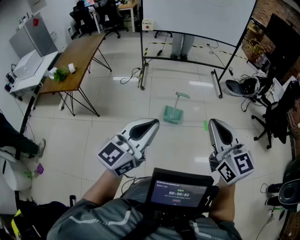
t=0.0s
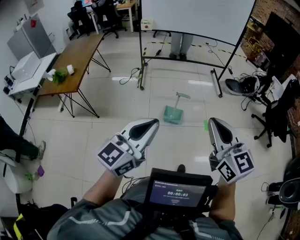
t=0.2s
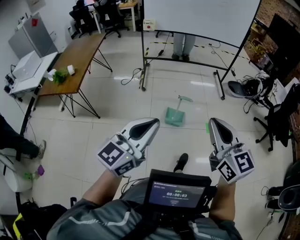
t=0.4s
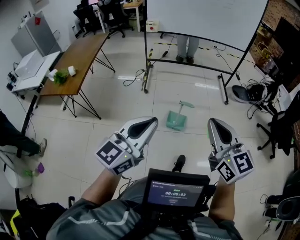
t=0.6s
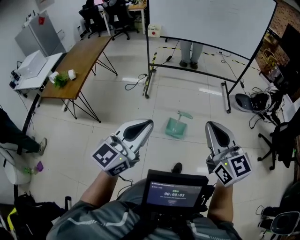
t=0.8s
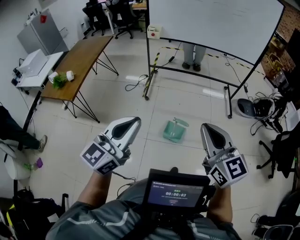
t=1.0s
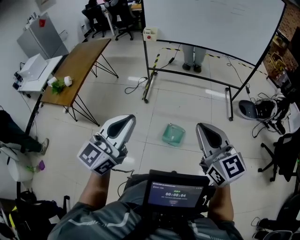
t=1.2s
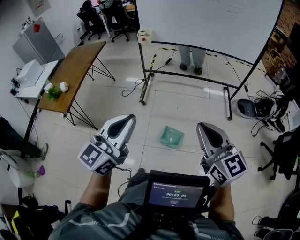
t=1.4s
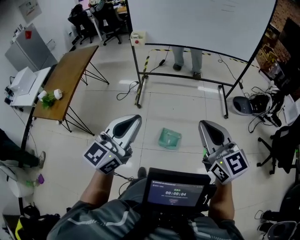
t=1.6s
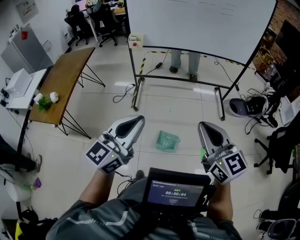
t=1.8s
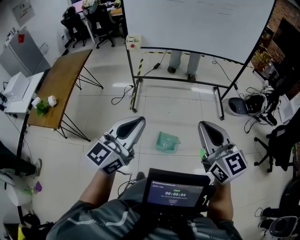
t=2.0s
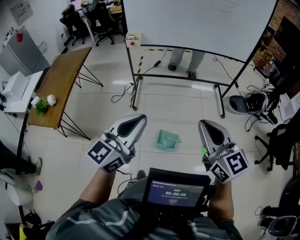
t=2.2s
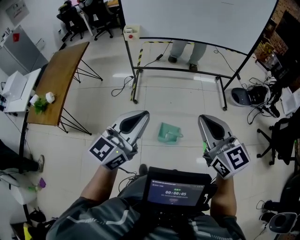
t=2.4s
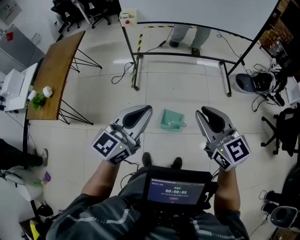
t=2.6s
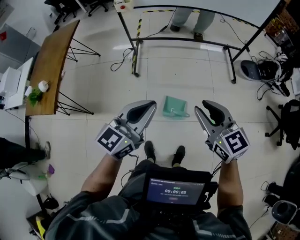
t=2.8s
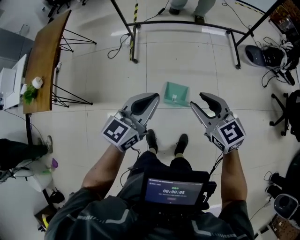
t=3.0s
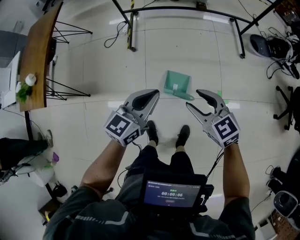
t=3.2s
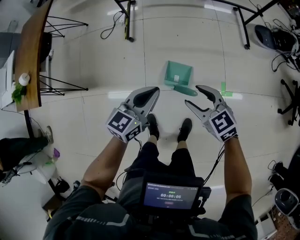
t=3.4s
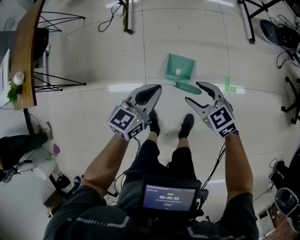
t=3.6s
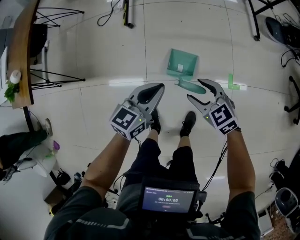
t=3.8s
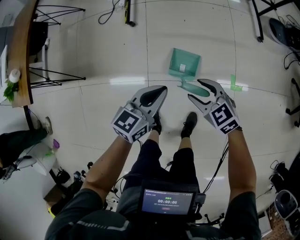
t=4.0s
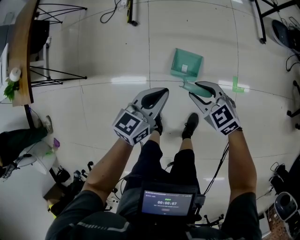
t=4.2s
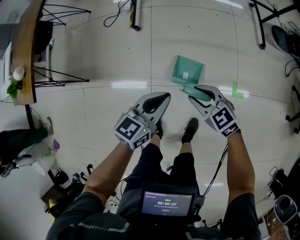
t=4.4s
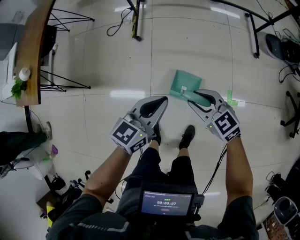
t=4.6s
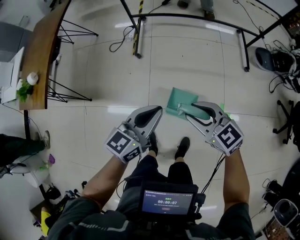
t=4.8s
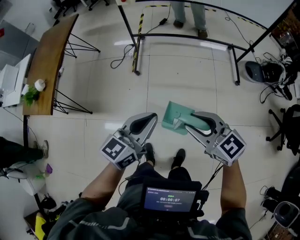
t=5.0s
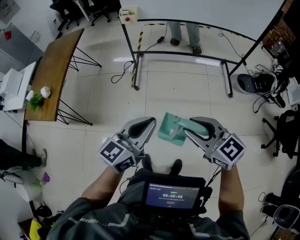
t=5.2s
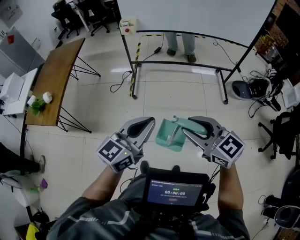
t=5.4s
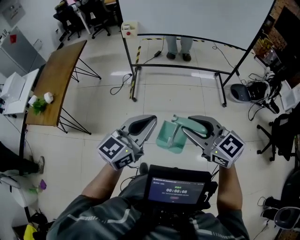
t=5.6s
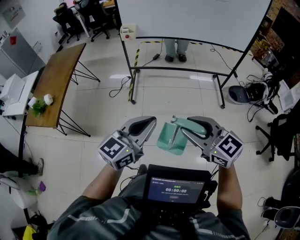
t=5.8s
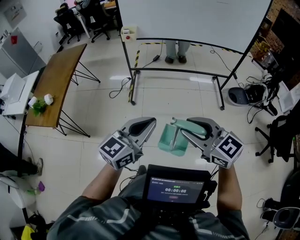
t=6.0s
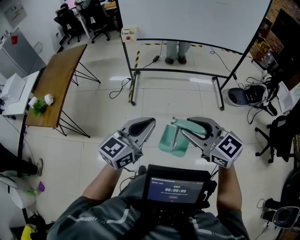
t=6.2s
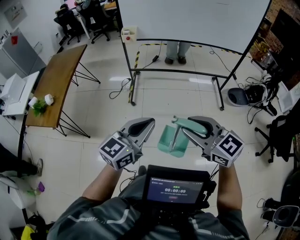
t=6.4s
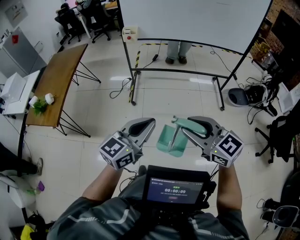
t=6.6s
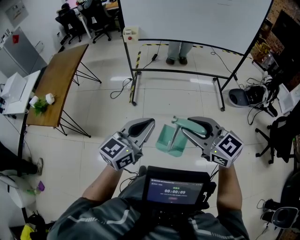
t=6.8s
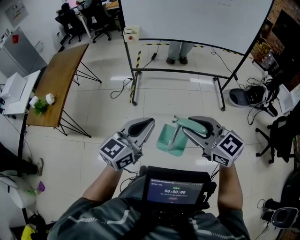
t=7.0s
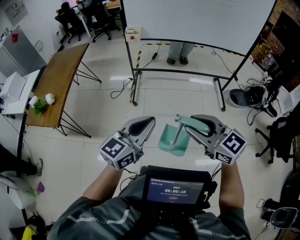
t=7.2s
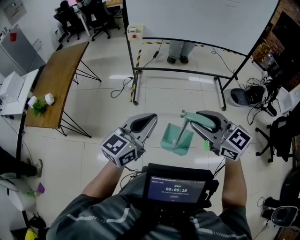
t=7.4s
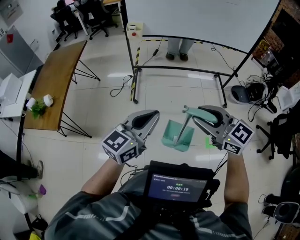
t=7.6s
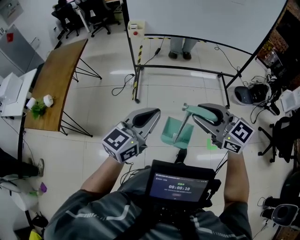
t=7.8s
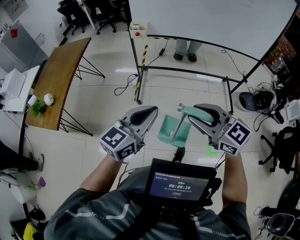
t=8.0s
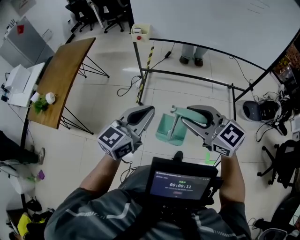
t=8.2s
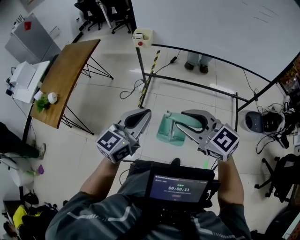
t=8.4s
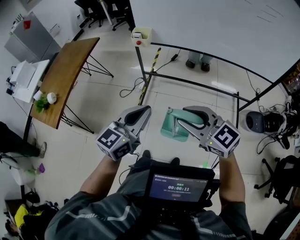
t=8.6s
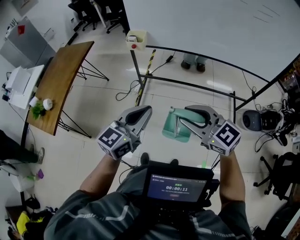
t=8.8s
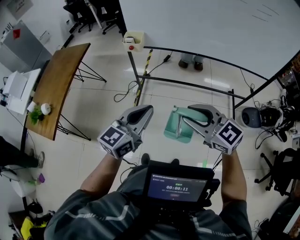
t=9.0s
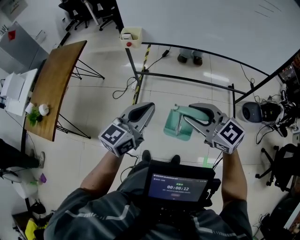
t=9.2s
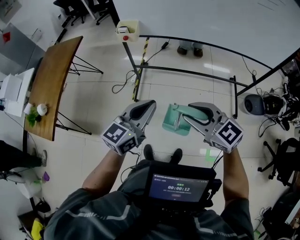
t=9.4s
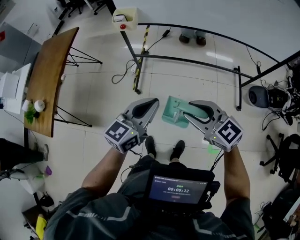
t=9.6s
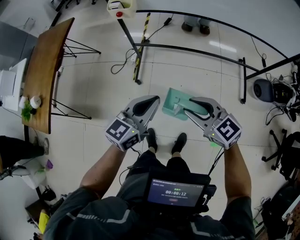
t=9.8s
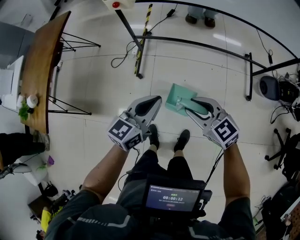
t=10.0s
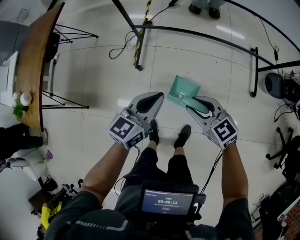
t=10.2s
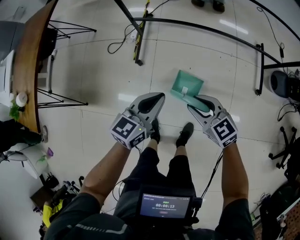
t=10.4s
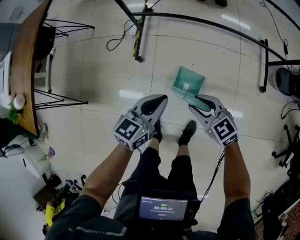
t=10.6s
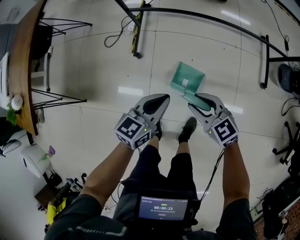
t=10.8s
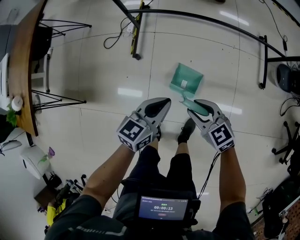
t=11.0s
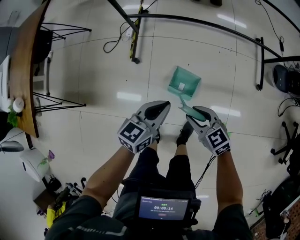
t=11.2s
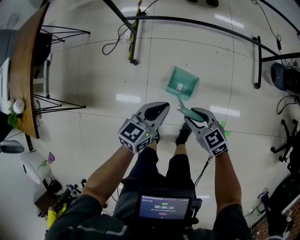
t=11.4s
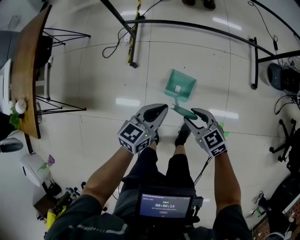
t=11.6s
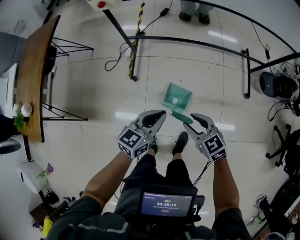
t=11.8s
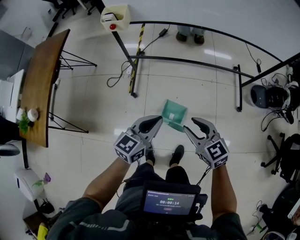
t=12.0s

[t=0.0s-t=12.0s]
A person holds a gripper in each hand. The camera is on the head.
t=0.0s to t=1.6s: Both grippers are carried forward, approximately 60 cm.
t=1.6s to t=3.0s: Both grippers travel together downward and forward, about 35 cm. The right gripper opens up.
t=3.0s to t=4.4s: Both grippers travel together downward, approximately 40 cm. The right gripper changes its angle by some 20 degrees, and opens, then closes again.
t=4.4s to t=6.0s: The grippers both shift upward by about 60 cm. The right gripper swivels about 30 degrees; the left gripper swivels some 20 degrees.
t=6.0s to t=7.6s: The right gripper travels forward and to the left by some 10 cm; the left gripper is displaced to the left and forward by approximately 15 cm.
t=7.6s to t=9.0s: The two grippers go about 40 cm forward and to the right.
t=9.0s to t=10.4s: The left gripper travels downward and forward by roughly 50 cm; the right gripper heads downward, covering roughly 50 cm, and swivels about 20 degrees.
t=10.4s to t=12.0s: The left gripper goes roughly 20 cm upward and backward. The right gripper heads upward, covering about 25 cm.

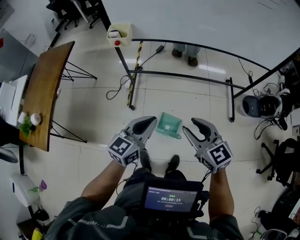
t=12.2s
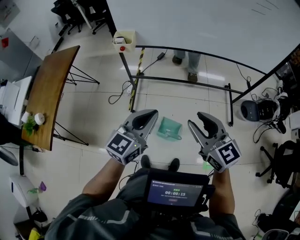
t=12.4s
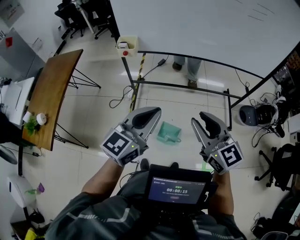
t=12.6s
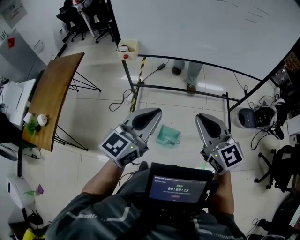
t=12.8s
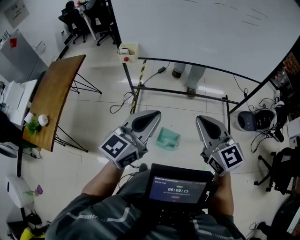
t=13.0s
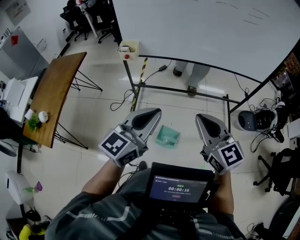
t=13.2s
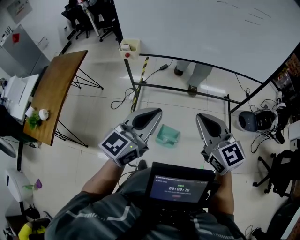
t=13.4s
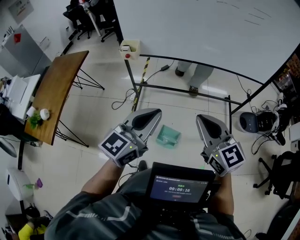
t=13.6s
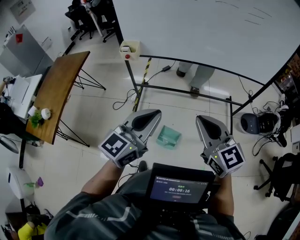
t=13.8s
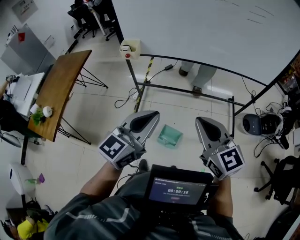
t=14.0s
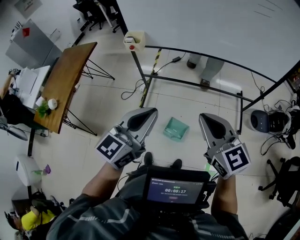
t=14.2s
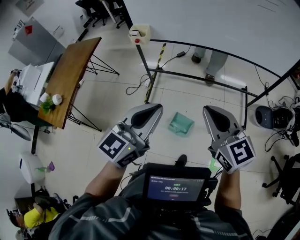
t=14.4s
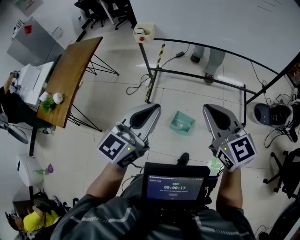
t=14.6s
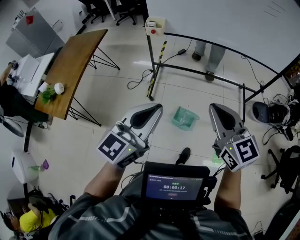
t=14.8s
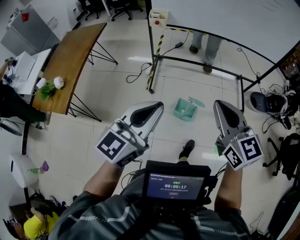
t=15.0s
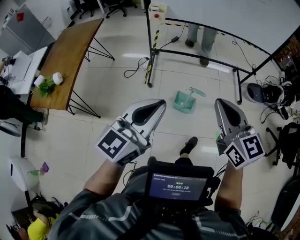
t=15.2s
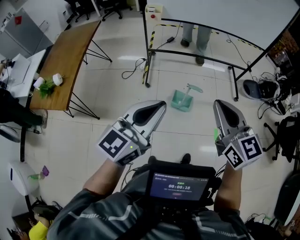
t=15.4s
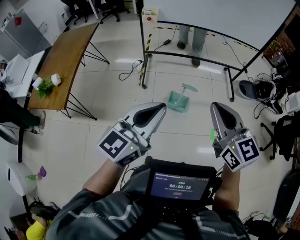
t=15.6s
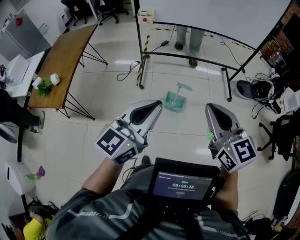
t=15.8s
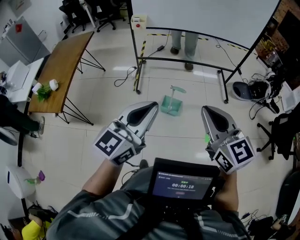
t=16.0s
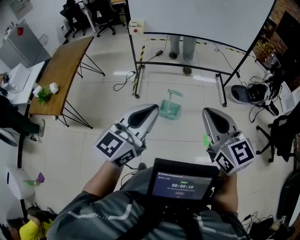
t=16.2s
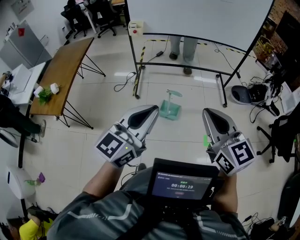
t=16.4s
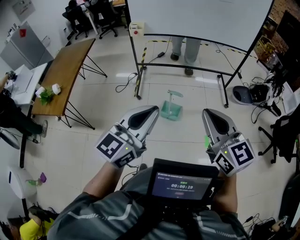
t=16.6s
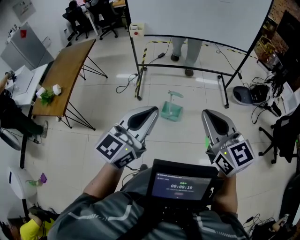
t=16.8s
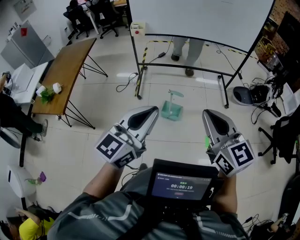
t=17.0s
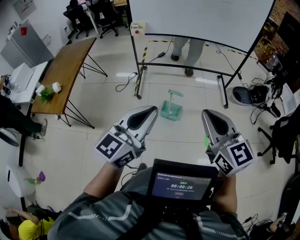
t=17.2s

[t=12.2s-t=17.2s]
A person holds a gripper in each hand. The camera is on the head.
t=12.2s to t=13.8s: The left gripper shifts roughly 25 cm upward and backward. The right gripper shifts approximately 25 cm upward, to the right and backward, and closes up.
t=13.8s to t=15.6s: The pair of grippers is taken backward and to the left, roughly 50 cm.
t=15.6s to t=17.2s: The two grippers go roughly 20 cm to the right and backward.

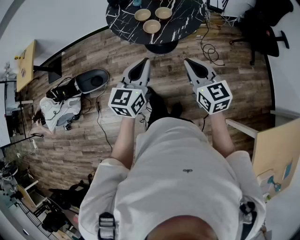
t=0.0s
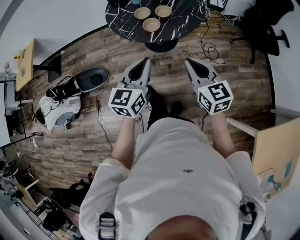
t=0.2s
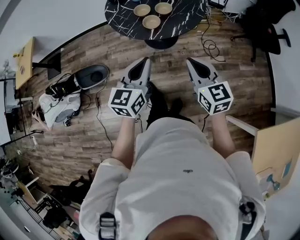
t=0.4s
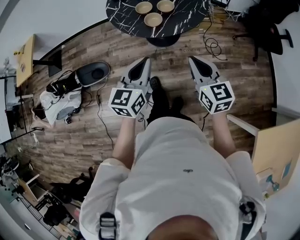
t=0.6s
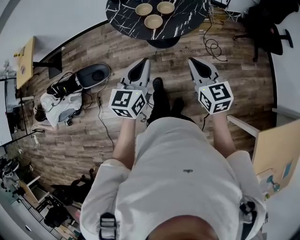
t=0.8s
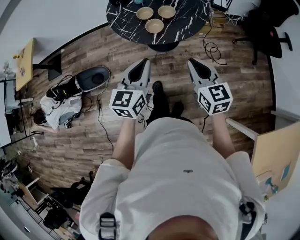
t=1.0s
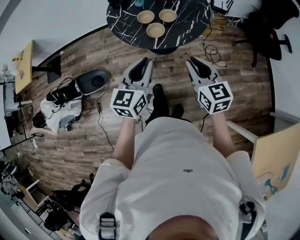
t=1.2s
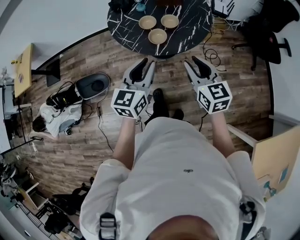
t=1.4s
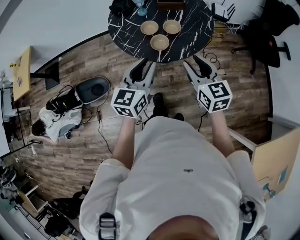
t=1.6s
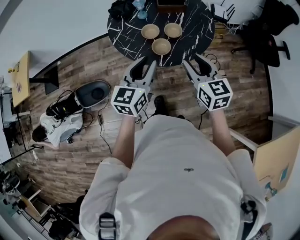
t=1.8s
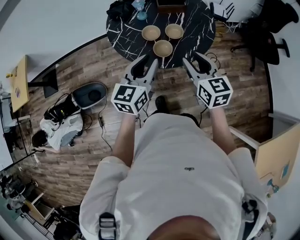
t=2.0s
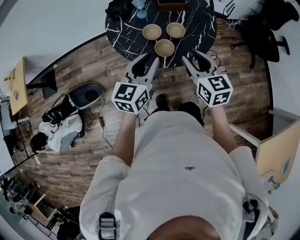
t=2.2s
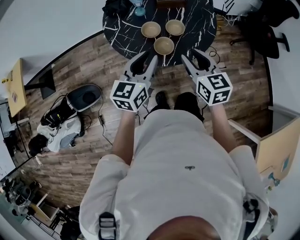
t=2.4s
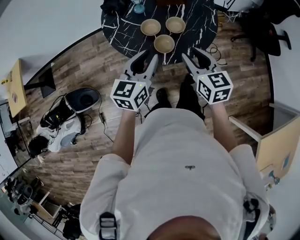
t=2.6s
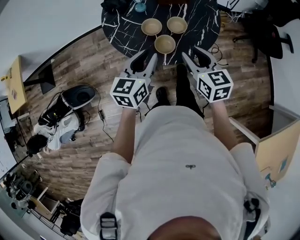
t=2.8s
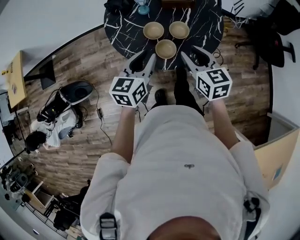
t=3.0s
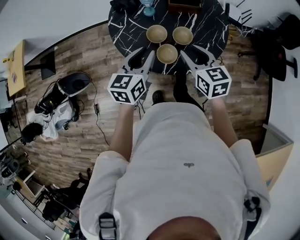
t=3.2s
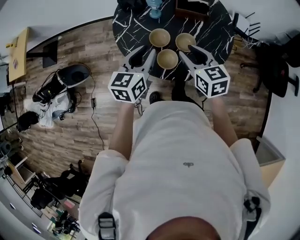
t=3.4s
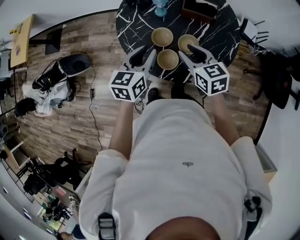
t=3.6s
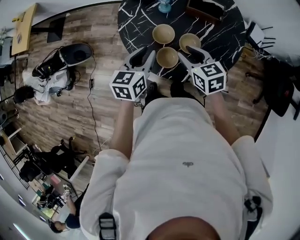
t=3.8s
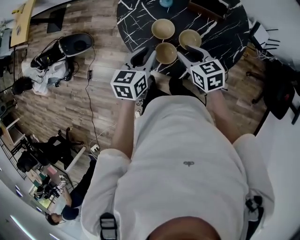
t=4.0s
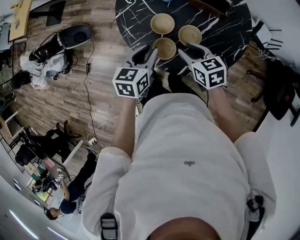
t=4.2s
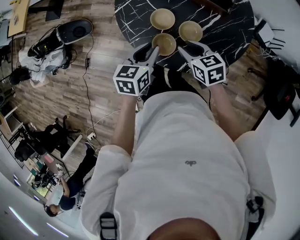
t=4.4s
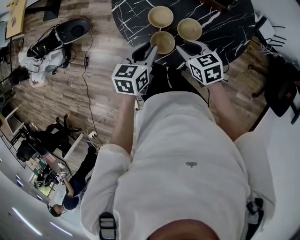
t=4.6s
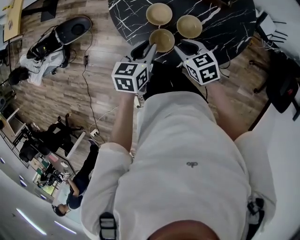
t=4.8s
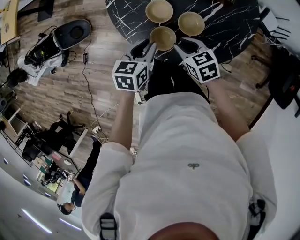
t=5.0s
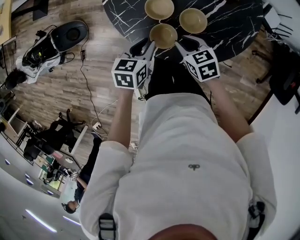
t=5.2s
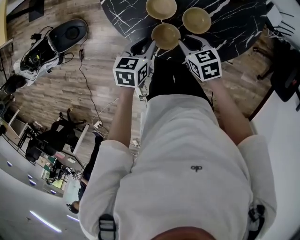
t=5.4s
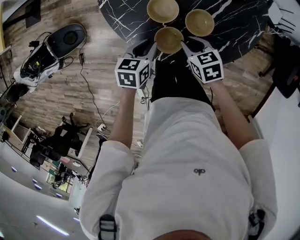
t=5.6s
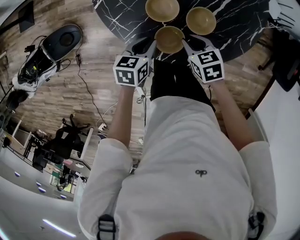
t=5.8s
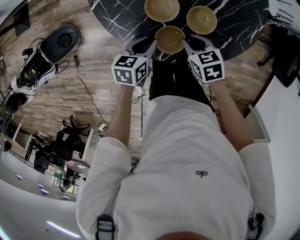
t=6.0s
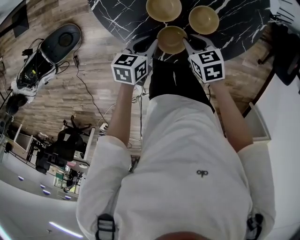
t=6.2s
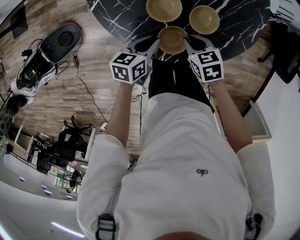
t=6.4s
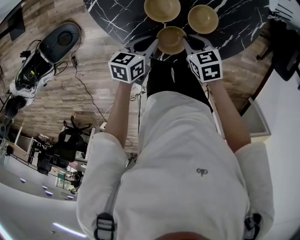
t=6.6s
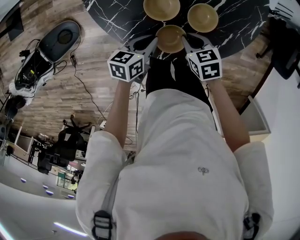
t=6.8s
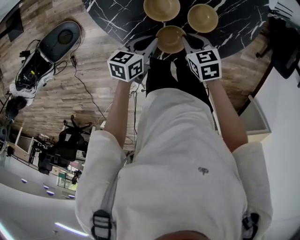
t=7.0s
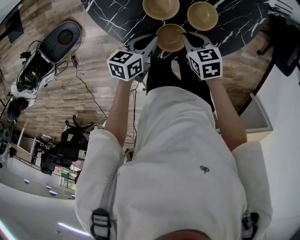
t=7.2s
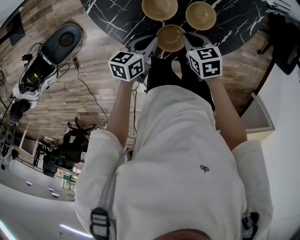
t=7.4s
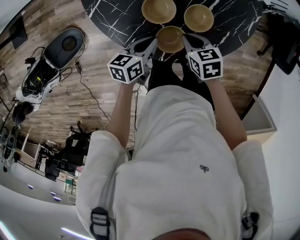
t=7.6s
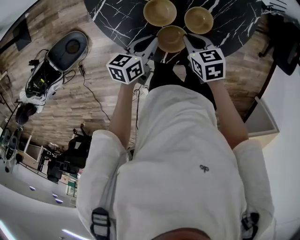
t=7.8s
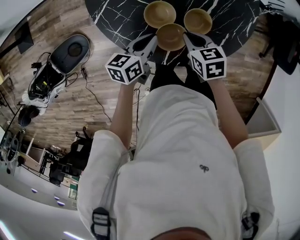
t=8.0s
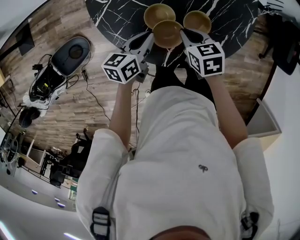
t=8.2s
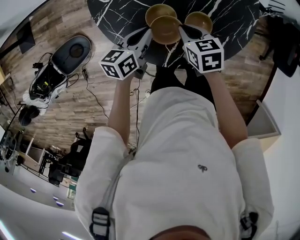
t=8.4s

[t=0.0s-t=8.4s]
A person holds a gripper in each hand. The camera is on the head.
t=0.0s to t=1.4s: The two grippers go some 10 cm forward. The right gripper opens its fingers.
t=1.4s to t=2.8s: The left gripper goes about 15 cm forward. The right gripper moves forward and to the left, some 15 cm.
t=2.8s to t=4.2s: The left gripper ends up roughly 15 cm from where it was, and turns by about 30 degrees; the right gripper ends up some 20 cm from where it was, and rotates roughly 40 degrees.
t=4.2s to t=5.6s: The two grippers go some 15 cm downward.
t=5.6s to t=7.0s: The left gripper rotates about 20 degrees.
t=7.0s to t=8.4s: The two grippers go approximately 10 cm forward and upward.
